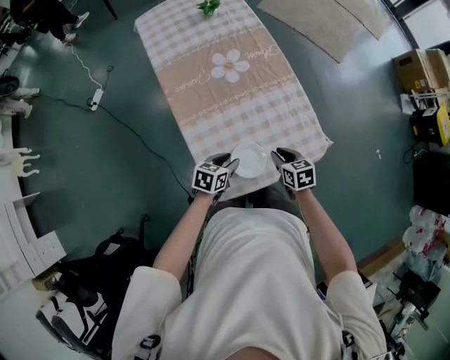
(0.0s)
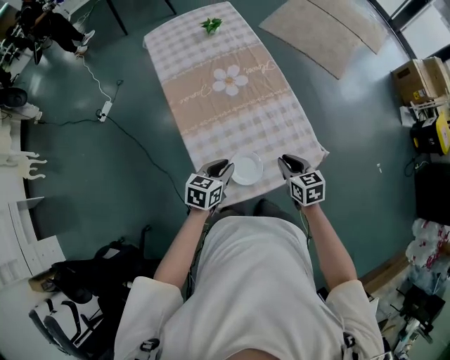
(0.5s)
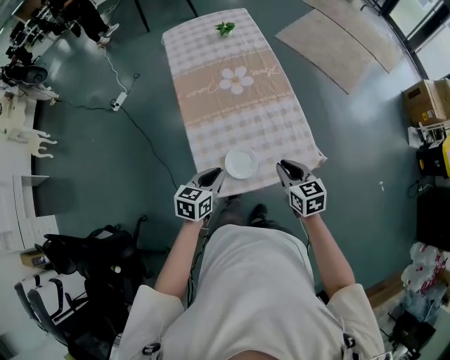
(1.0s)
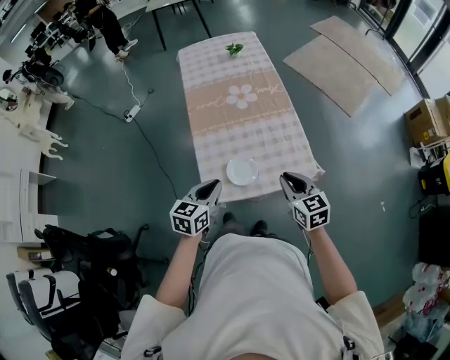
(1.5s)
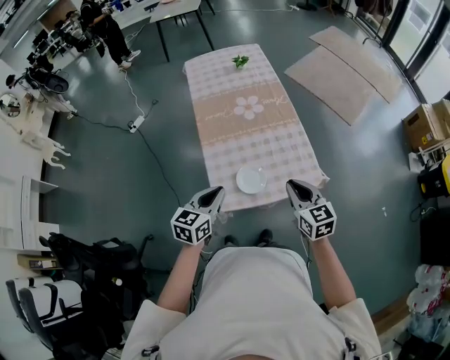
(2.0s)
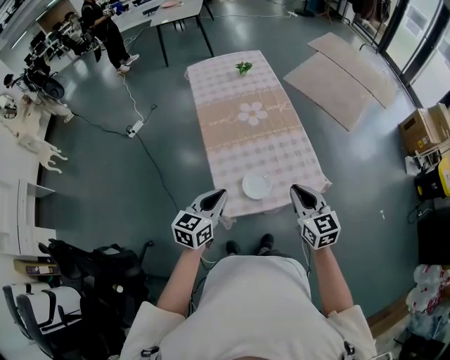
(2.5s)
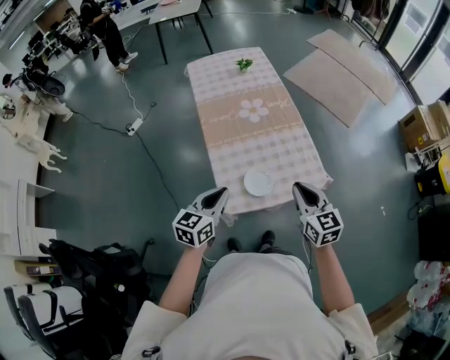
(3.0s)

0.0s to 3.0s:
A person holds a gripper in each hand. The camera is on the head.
0.0s to 1.5s: The left gripper goes about 25 cm upward and backward, turns by some 30 degrees, and closes, while the right gripper moves upward, backward and to the right, roughly 25 cm, and rotates some 30 degrees.
1.5s to 3.0s: The left gripper heads to the left and upward, covering approximately 10 cm; the right gripper travels upward and to the left by approximately 10 cm.

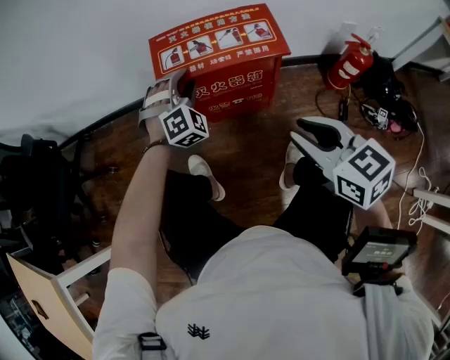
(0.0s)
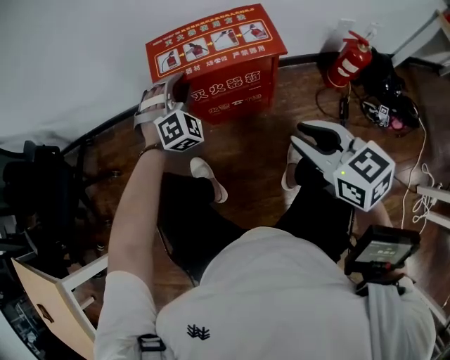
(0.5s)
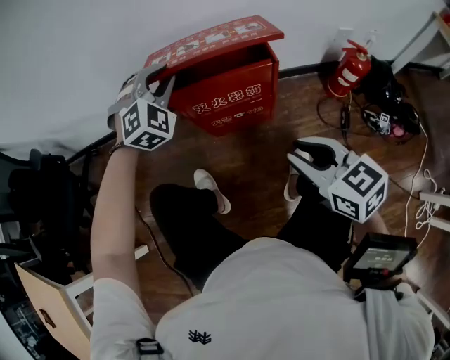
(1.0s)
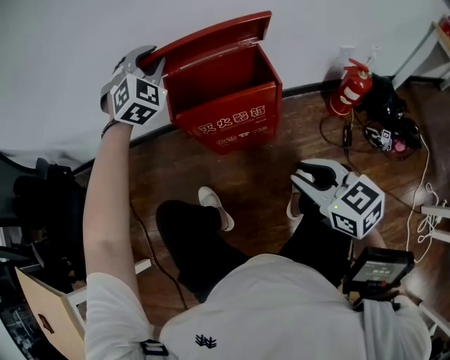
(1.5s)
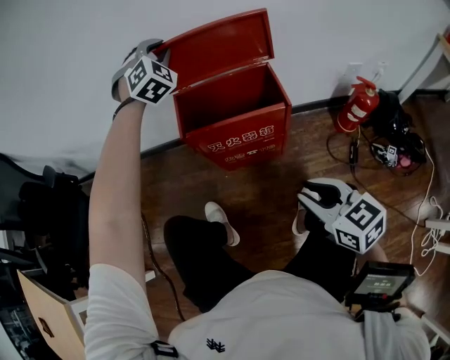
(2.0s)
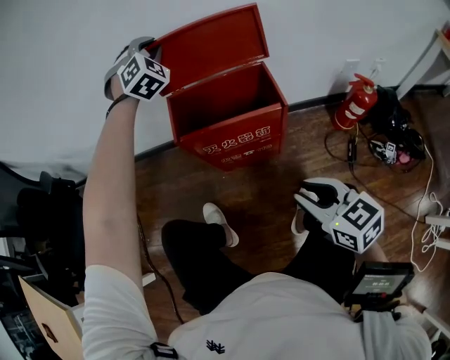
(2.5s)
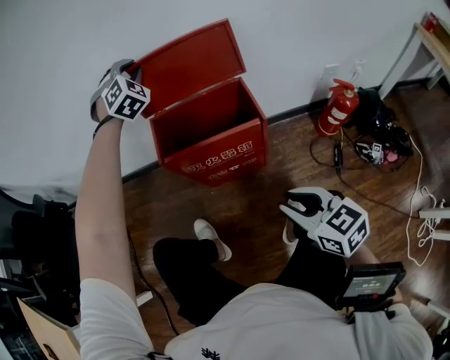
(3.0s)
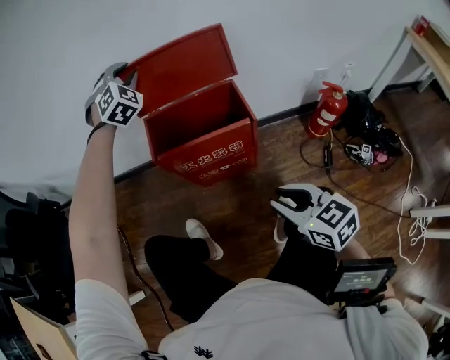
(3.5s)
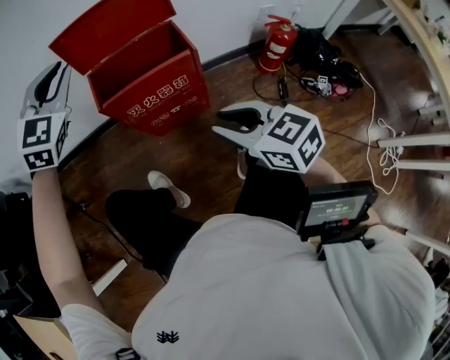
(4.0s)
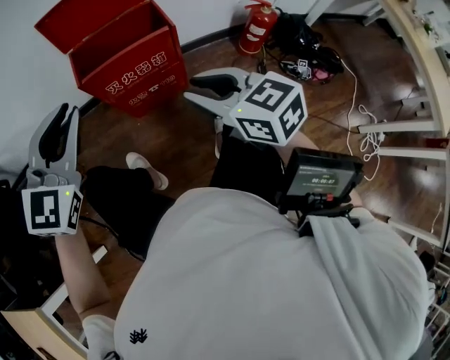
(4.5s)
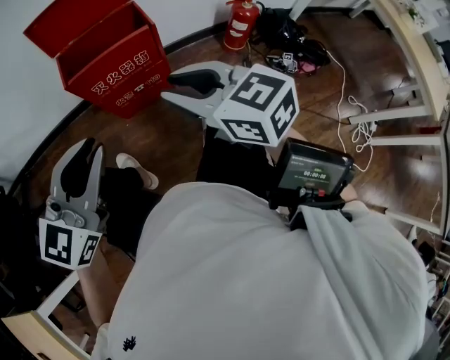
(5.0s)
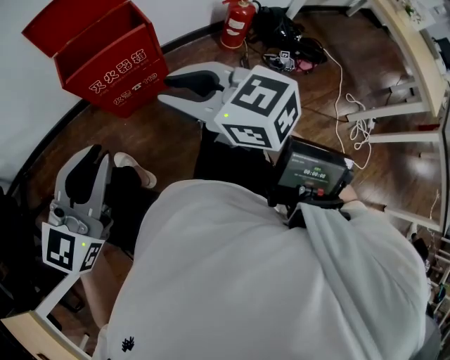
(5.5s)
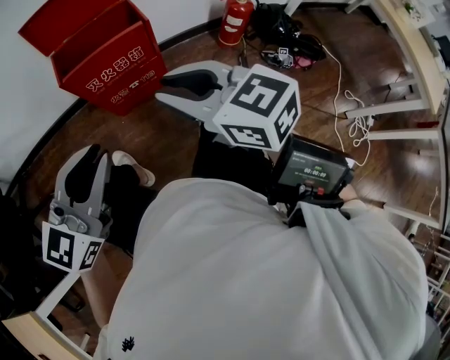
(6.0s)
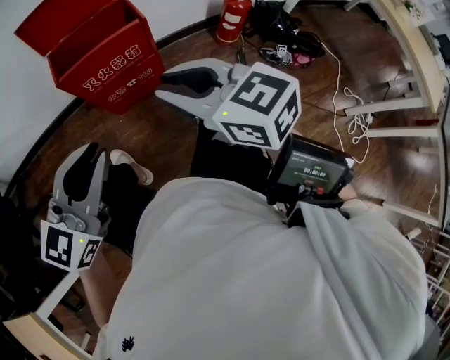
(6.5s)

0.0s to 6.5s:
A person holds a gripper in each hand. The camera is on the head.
0.0s to 2.0s: The left gripper travels upward and forward by approximately 30 cm.
2.0s to 4.5s: The left gripper moves backward, approximately 35 cm, and swivels roughly 50 degrees. Meanwhile the right gripper moves upward, approximately 5 cm.
4.5s to 6.5s: The right gripper ends up approximately 5 cm from where it was; the left gripper heads backward and to the right, covering approximately 15 cm, and rotates roughly 30 degrees.

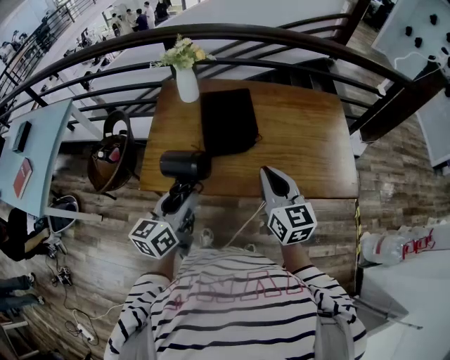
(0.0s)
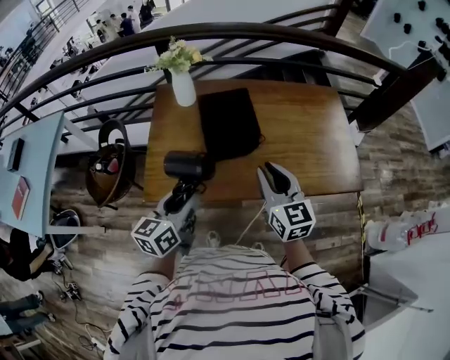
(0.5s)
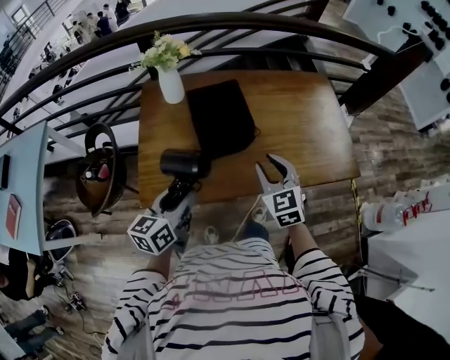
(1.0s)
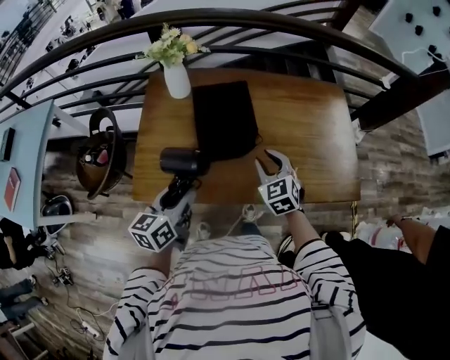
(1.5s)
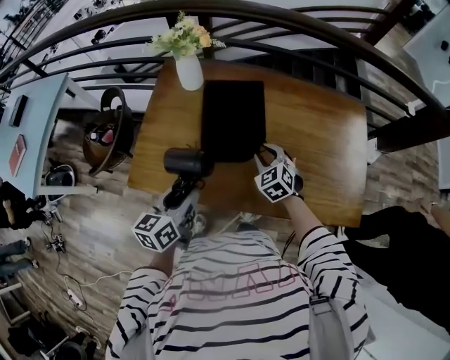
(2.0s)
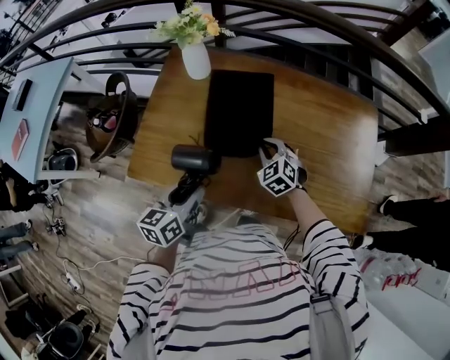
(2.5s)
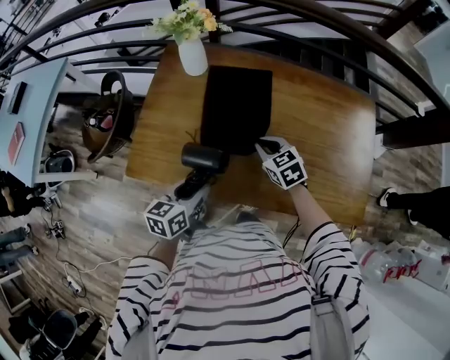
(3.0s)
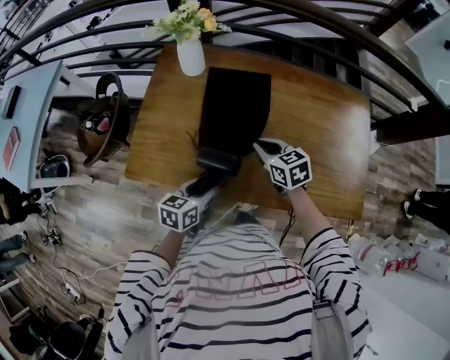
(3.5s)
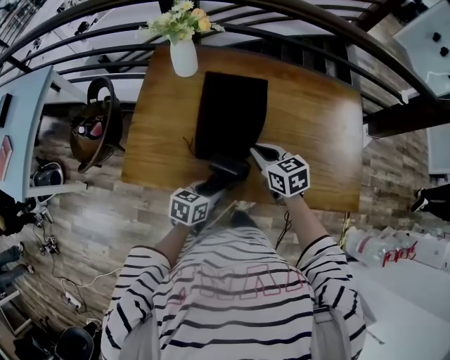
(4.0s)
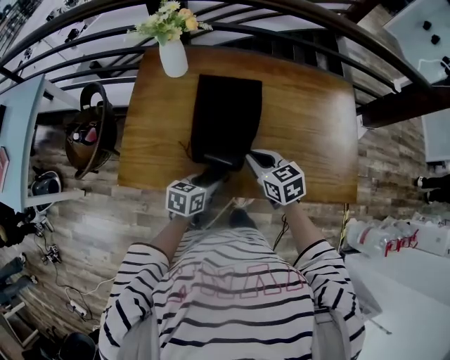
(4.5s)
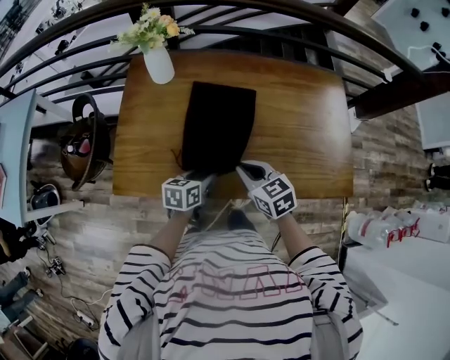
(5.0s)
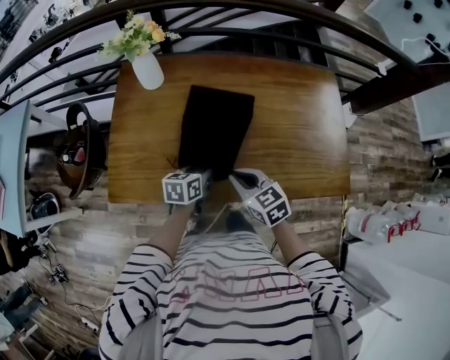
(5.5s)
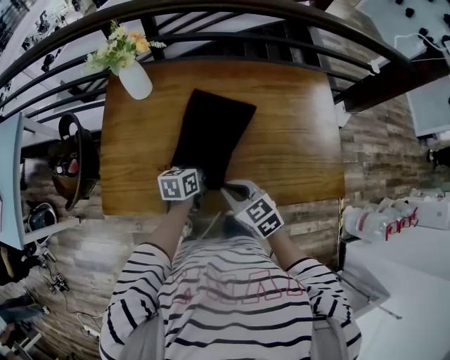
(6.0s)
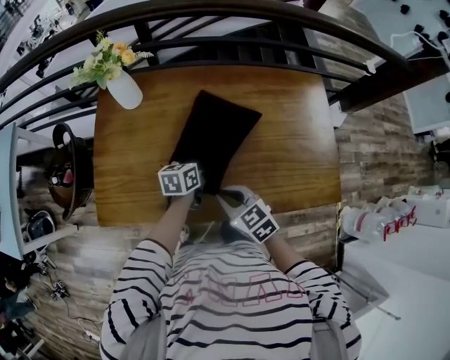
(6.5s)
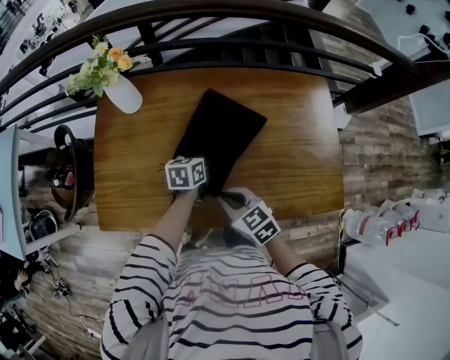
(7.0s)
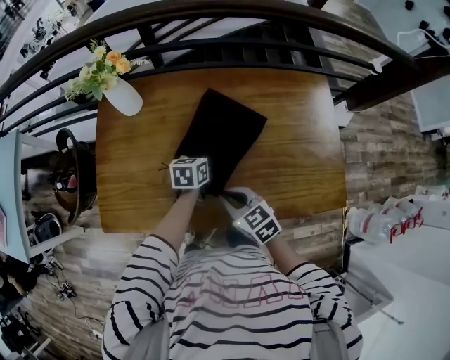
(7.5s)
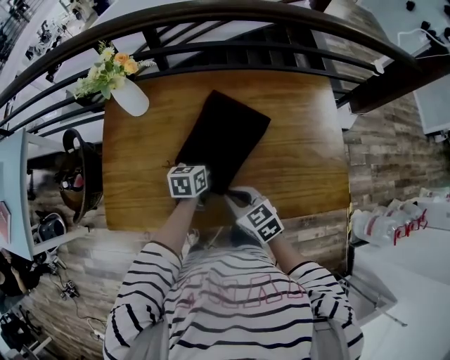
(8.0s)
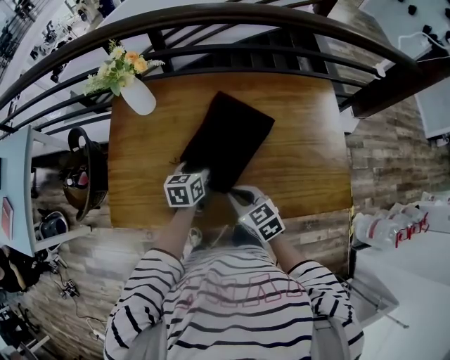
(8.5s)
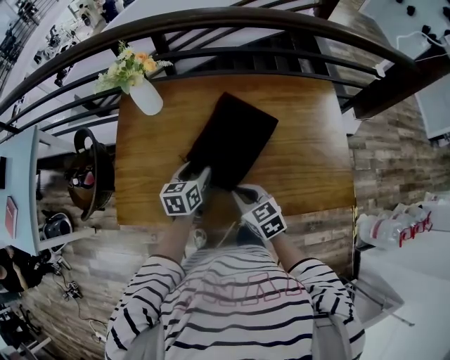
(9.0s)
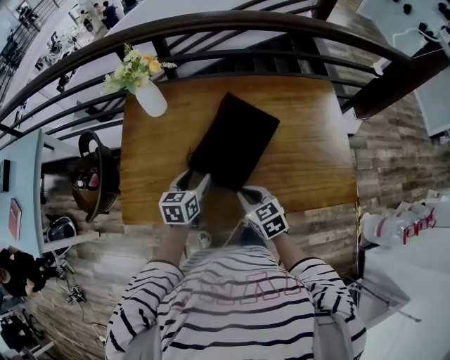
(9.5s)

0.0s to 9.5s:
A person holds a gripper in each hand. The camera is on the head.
0.0s to 2.0s: The right gripper moves forward and downward, some 30 cm, points its fingers about 30 degrees further downward, and opens, while the left gripper moves forward and downward, roughly 15 cm.
2.0s to 4.0s: The right gripper shifts by approximately 5 cm, turns by approximately 40 degrees, and closes up. Meanwhile the left gripper heads downward and to the right, covering about 15 cm, and turns by roughly 30 degrees.
4.0s to 5.5s: The left gripper travels forward by about 10 cm. Meanwhile the right gripper shifts roughly 5 cm backward.
5.5s to 7.5s: The right gripper ends up some 5 cm from where it was; the left gripper is displaced forward and to the right by approximately 15 cm.
7.5s to 9.5s: The left gripper is displaced to the left, backward and upward by approximately 15 cm.

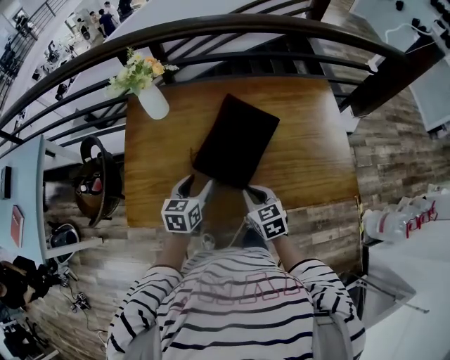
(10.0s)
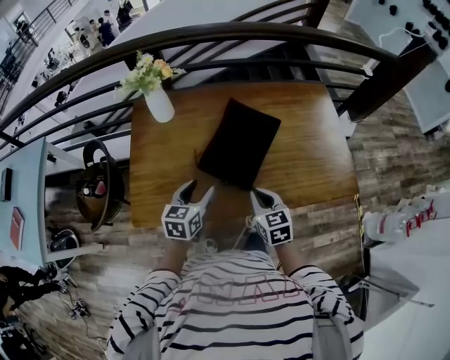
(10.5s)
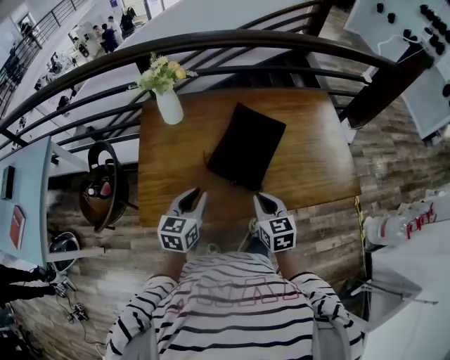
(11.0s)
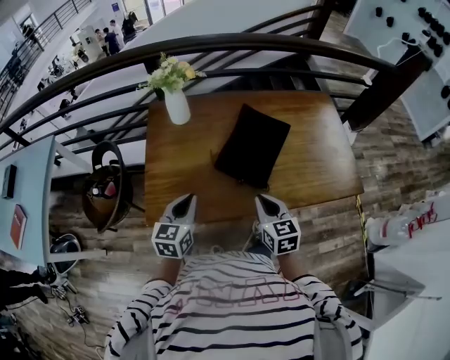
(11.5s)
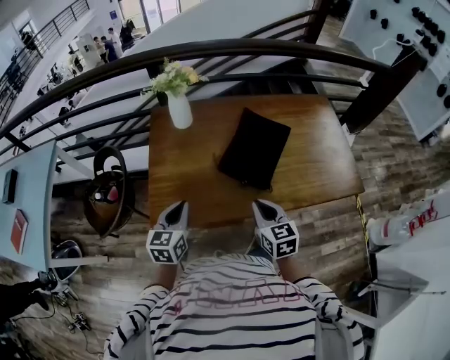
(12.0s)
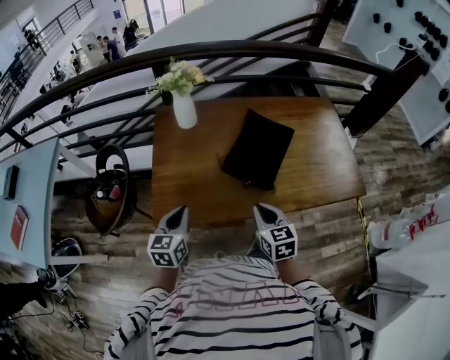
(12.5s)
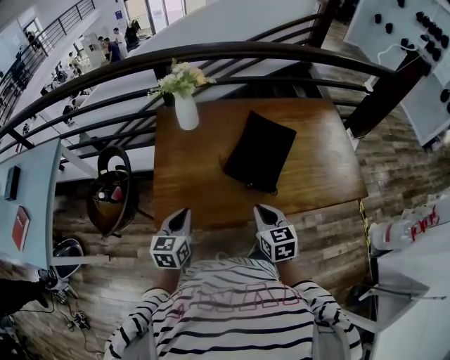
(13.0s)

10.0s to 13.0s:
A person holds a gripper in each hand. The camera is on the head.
10.0s to 11.5s: The left gripper is displaced to the left, backward and upward by approximately 20 cm, and closes. The right gripper shifts approximately 15 cm backward, upward and to the left.
11.5s to 13.0s: The left gripper shifts about 5 cm to the left.

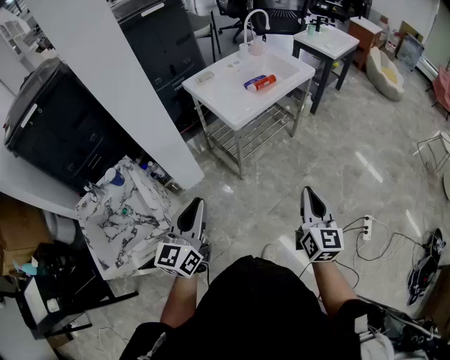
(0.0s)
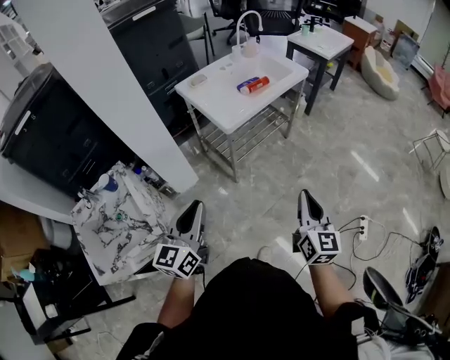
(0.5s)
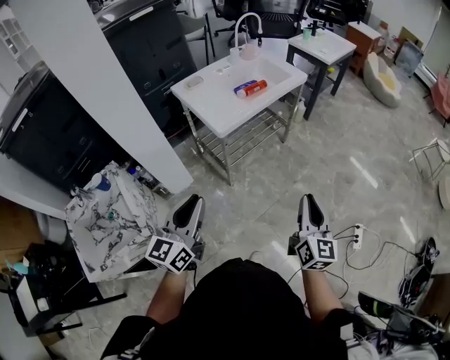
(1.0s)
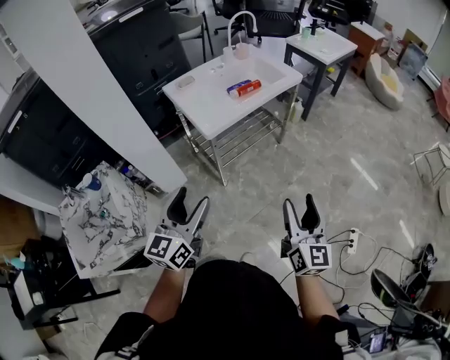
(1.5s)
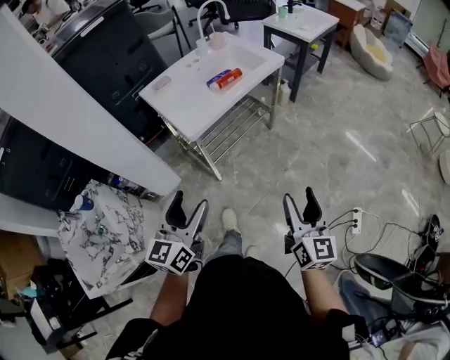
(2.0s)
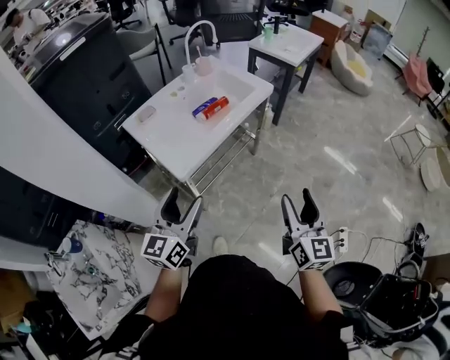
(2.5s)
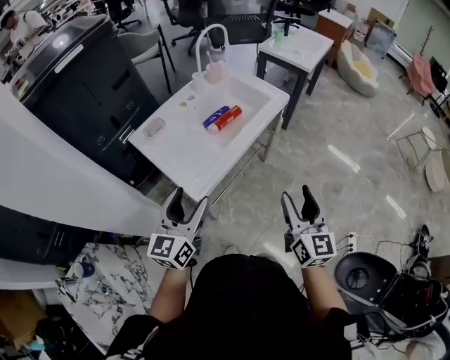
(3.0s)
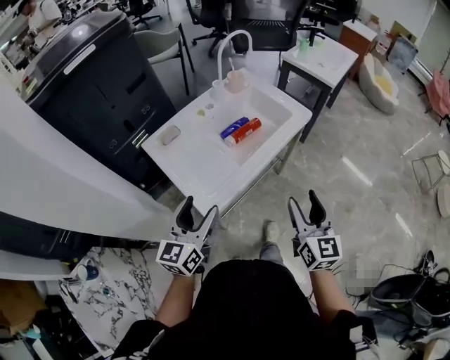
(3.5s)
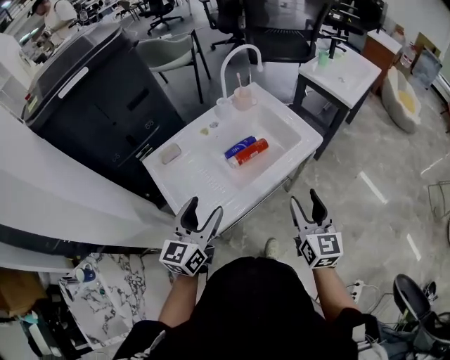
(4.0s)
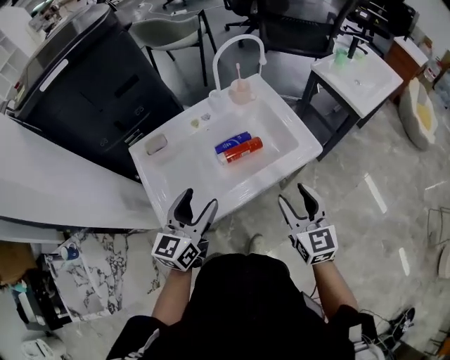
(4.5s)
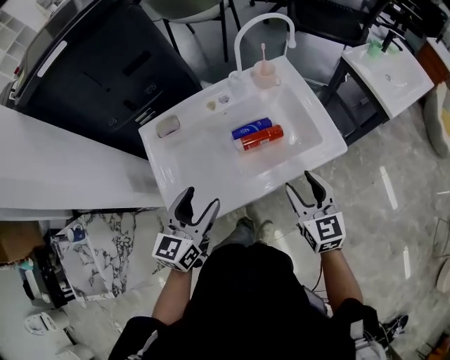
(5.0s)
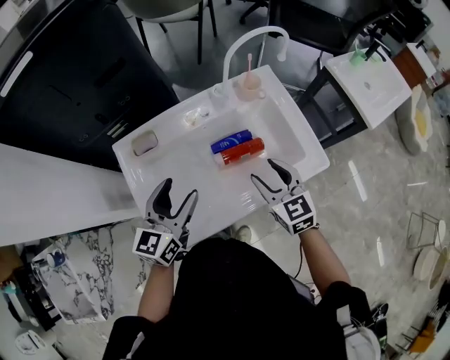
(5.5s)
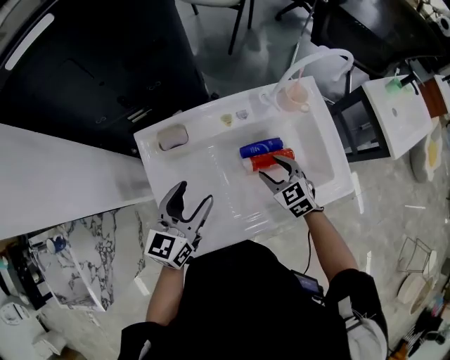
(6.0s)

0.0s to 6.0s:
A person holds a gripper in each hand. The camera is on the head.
0.0s to 2.0s: Both grippers travel together to the right and forward, roughly 15 cm. The right gripper opens its fingers; the left gripper opens its fingers.
2.0s to 4.0s: Both grippers travel together forward, some 40 cm.
4.0s to 6.0s: The left gripper ends up approximately 15 cm from where it was. Meanwhile the right gripper ends up about 35 cm from where it was, and angles its fingers downward, by some 30 degrees.
